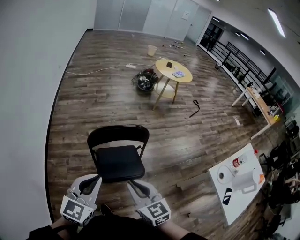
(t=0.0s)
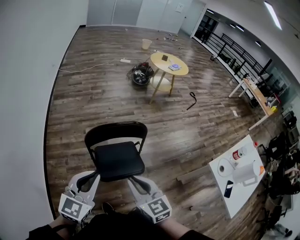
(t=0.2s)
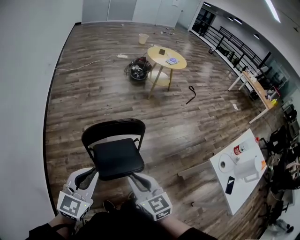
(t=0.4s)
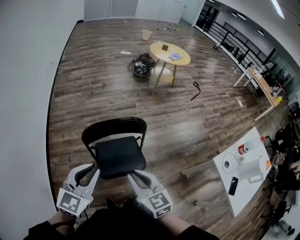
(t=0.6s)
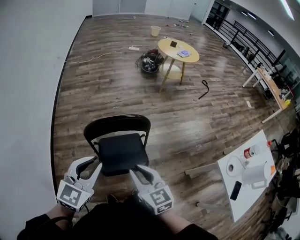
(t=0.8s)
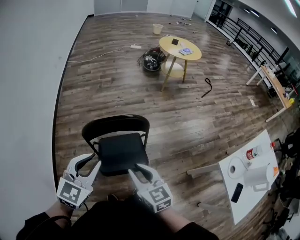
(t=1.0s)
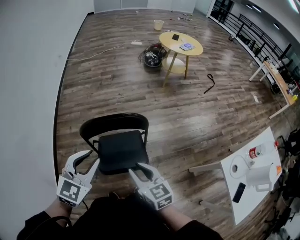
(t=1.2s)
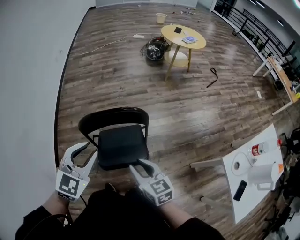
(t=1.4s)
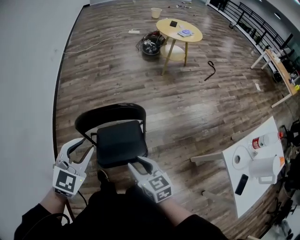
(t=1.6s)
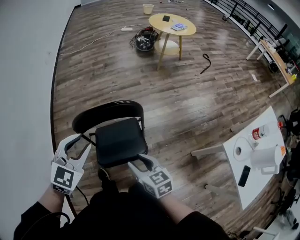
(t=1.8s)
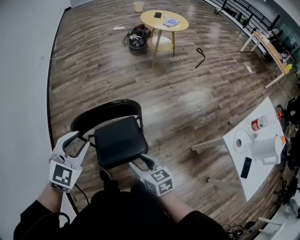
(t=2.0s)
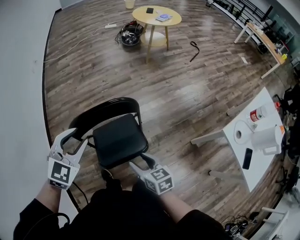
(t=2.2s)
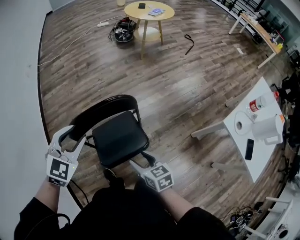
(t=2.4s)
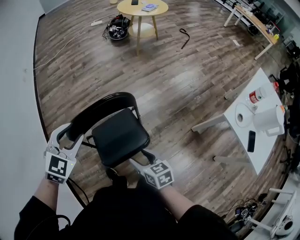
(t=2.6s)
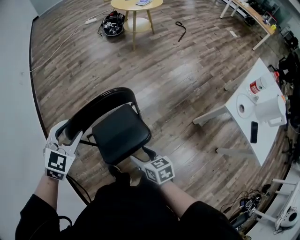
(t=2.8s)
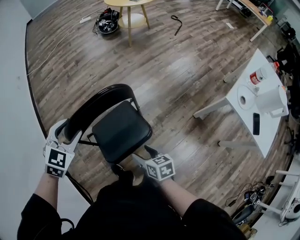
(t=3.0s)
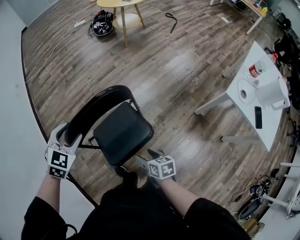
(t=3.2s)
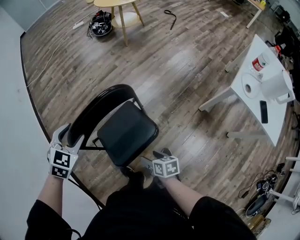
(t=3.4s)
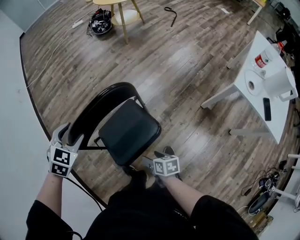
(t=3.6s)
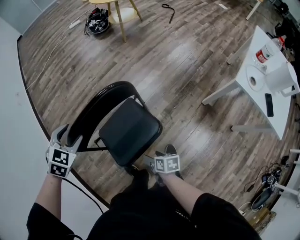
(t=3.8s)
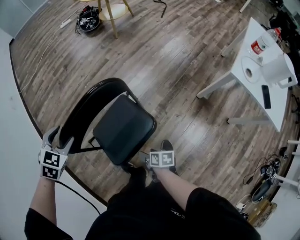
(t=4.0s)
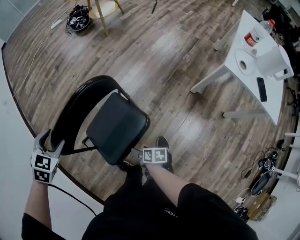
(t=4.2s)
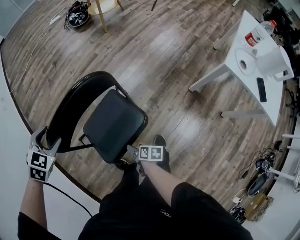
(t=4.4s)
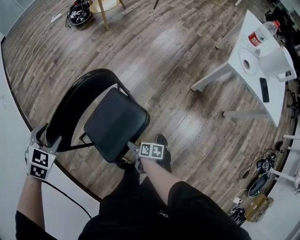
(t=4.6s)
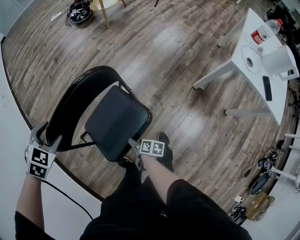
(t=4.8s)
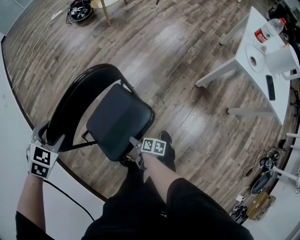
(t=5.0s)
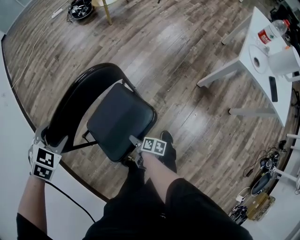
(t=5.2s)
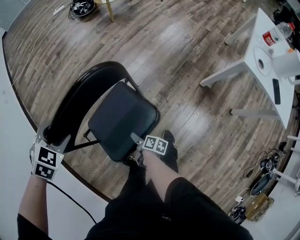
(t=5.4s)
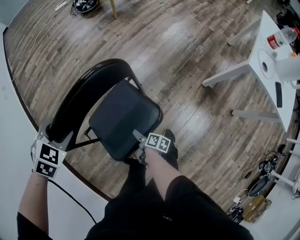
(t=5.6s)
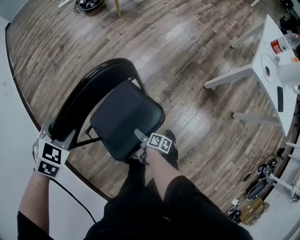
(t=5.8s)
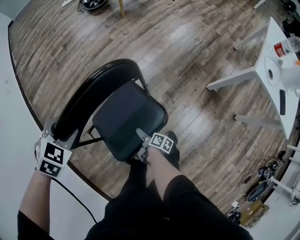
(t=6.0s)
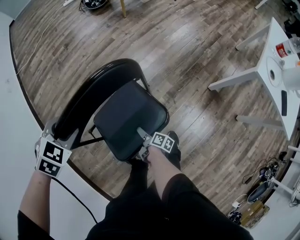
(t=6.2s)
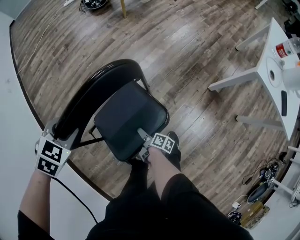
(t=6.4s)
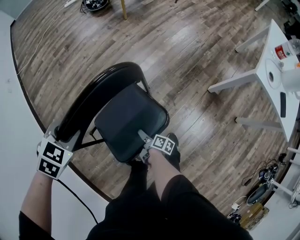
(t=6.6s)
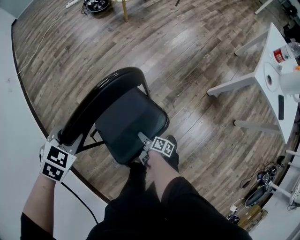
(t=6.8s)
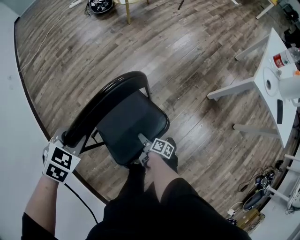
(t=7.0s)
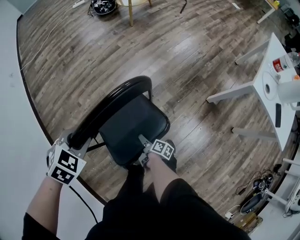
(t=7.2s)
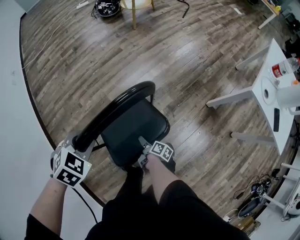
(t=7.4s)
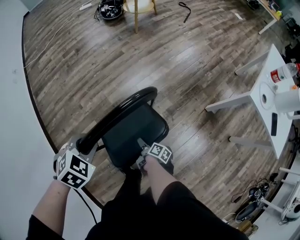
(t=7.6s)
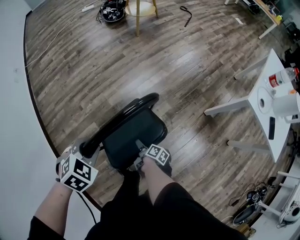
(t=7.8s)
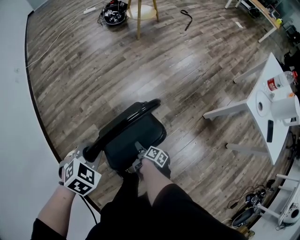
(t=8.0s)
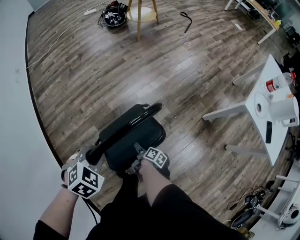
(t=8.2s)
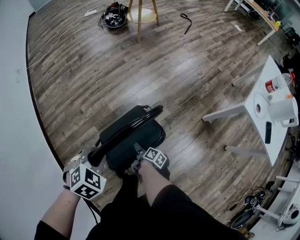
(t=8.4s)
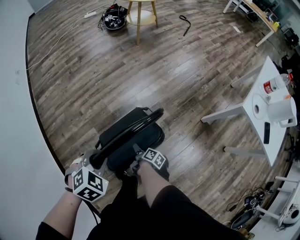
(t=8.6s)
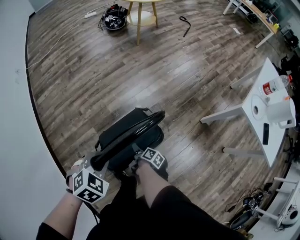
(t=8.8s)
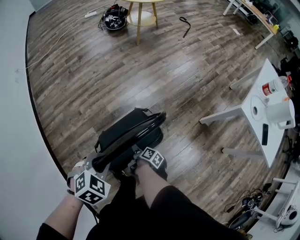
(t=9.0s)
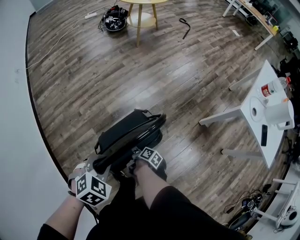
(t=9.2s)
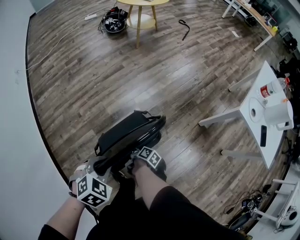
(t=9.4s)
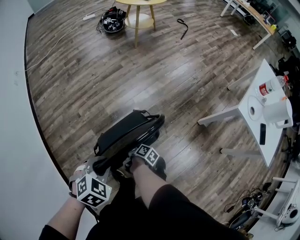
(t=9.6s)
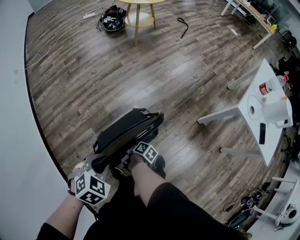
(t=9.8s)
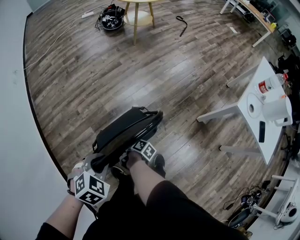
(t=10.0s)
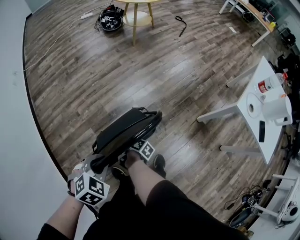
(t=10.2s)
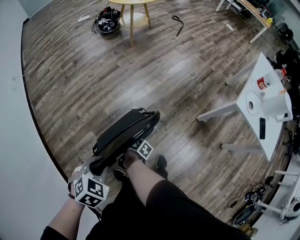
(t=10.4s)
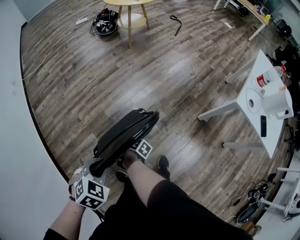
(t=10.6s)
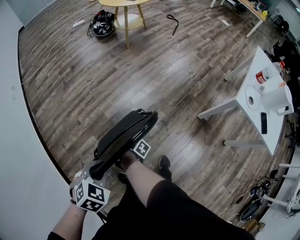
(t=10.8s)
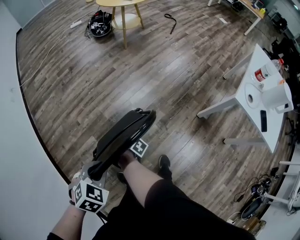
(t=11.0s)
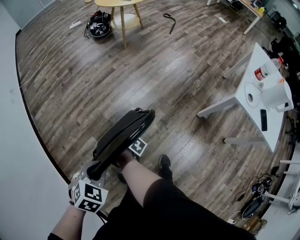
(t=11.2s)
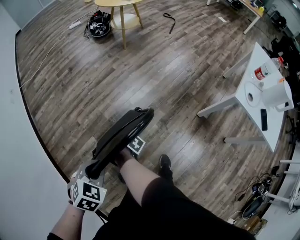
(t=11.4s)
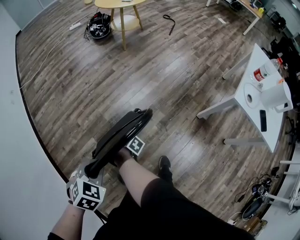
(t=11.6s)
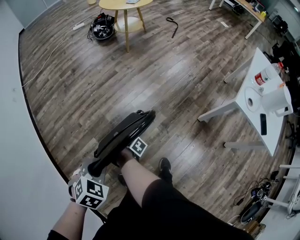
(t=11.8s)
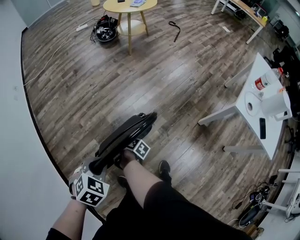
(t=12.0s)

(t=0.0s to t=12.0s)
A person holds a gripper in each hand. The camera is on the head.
t=0.0s - t=1.6s: The right gripper is displaced downward, to the right and forward by some 15 cm. The left gripper shifts some 15 cm forward and to the right, turns by approximately 30 degrees, and opens.
t=1.6s - t=3.0s: The left gripper travels forward, downward and to the left by roughly 15 cm, swivels some 20 degrees, and opens, while the right gripper travels downward by some 15 cm, turns by roughly 30 degrees, and opens its fingers.
t=3.0s - t=4.4s: The right gripper travels downward by about 20 cm, and rolls clockwise, seen from behind, by some 40 degrees, while the left gripper moves downward and to the left, roughly 10 cm.
t=4.4s - t=6.0s: The right gripper goes some 10 cm downward and forward, and swivels approximately 20 degrees, while the left gripper ends up about 5 cm from where it was.
t=6.0s - t=7.6s: The right gripper closes up; the left gripper moves backward, about 5 cm, and closes.
t=7.6s - t=9.0s: The left gripper moves backward, about 5 cm.
t=9.0s - t=10.4s: The right gripper ends up about 10 cm from where it was.
t=10.4s - t=12.0s: The right gripper changes place by some 5 cm.

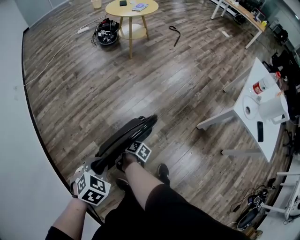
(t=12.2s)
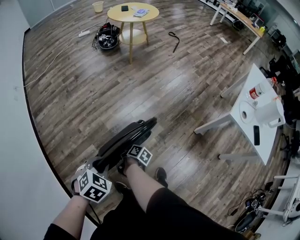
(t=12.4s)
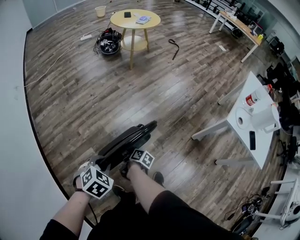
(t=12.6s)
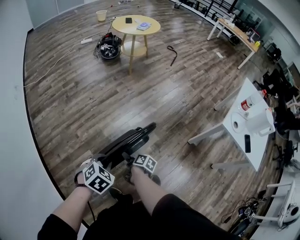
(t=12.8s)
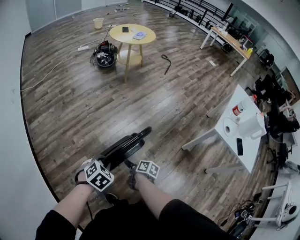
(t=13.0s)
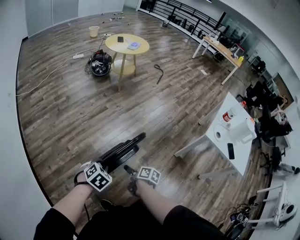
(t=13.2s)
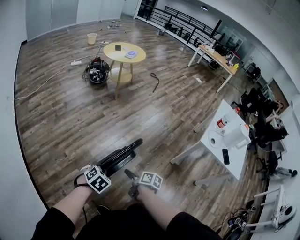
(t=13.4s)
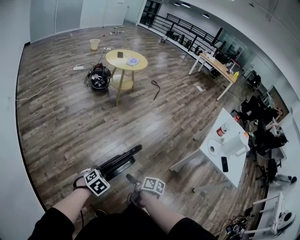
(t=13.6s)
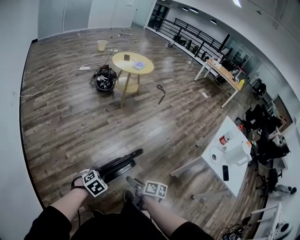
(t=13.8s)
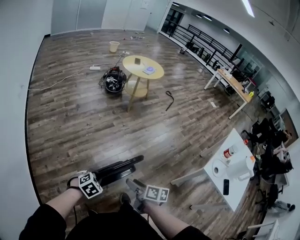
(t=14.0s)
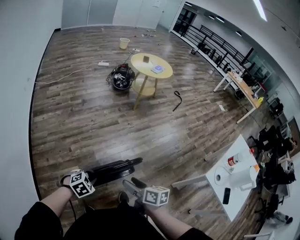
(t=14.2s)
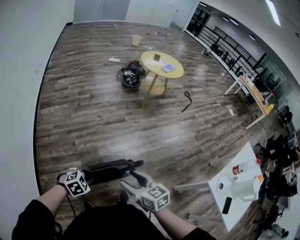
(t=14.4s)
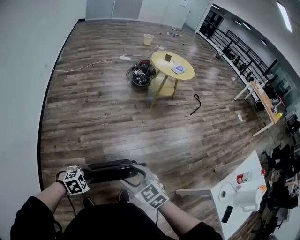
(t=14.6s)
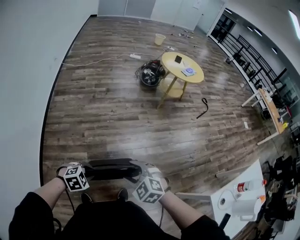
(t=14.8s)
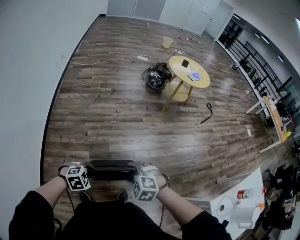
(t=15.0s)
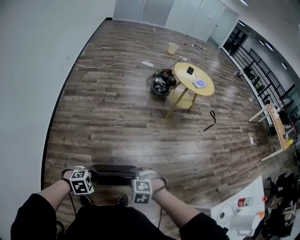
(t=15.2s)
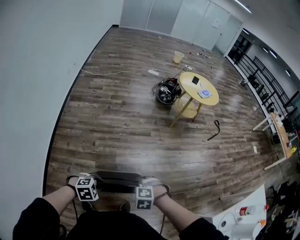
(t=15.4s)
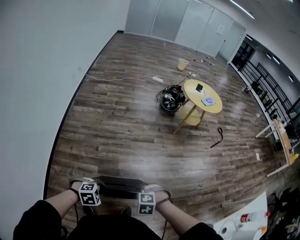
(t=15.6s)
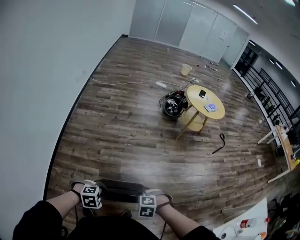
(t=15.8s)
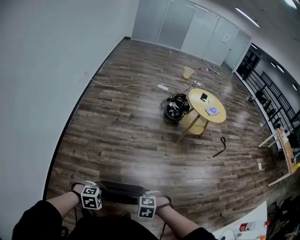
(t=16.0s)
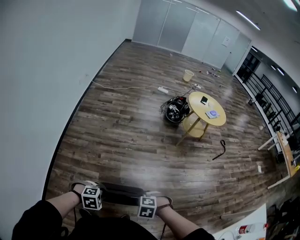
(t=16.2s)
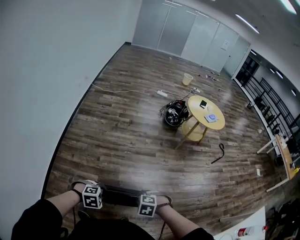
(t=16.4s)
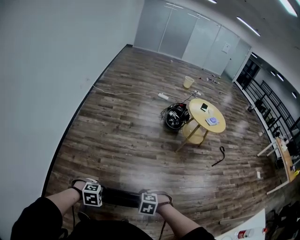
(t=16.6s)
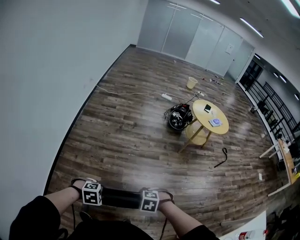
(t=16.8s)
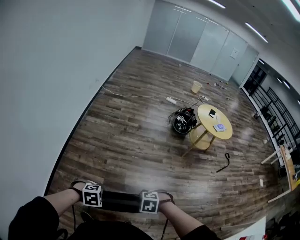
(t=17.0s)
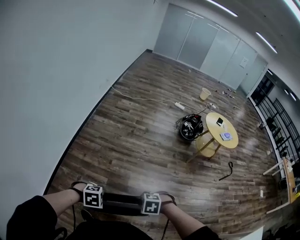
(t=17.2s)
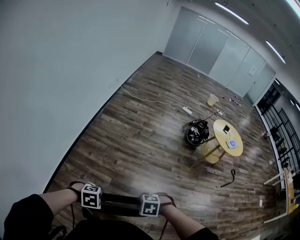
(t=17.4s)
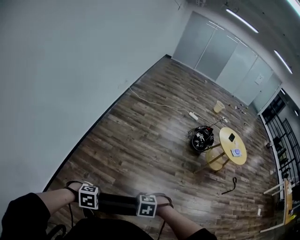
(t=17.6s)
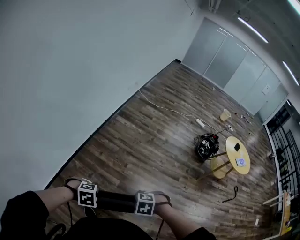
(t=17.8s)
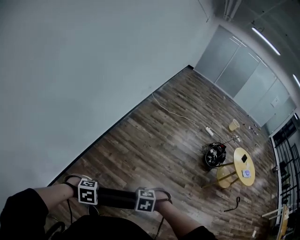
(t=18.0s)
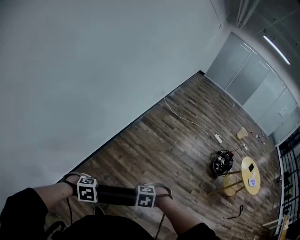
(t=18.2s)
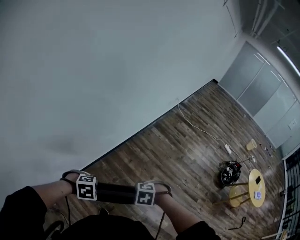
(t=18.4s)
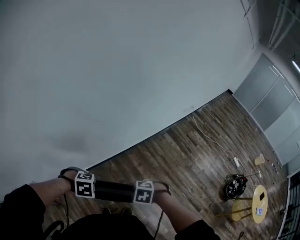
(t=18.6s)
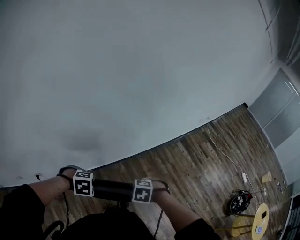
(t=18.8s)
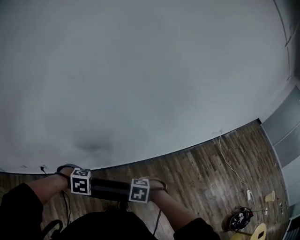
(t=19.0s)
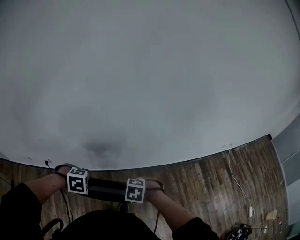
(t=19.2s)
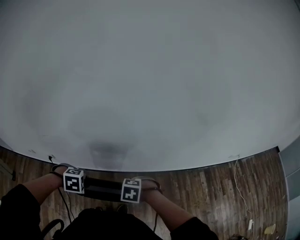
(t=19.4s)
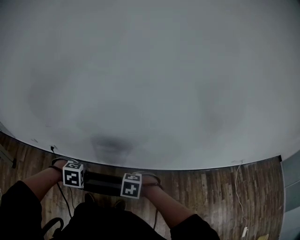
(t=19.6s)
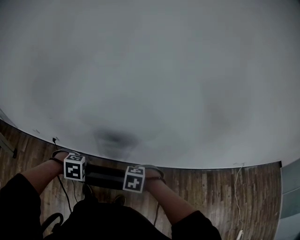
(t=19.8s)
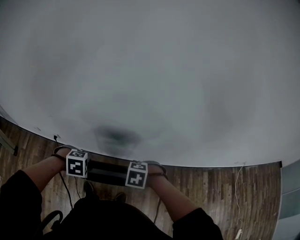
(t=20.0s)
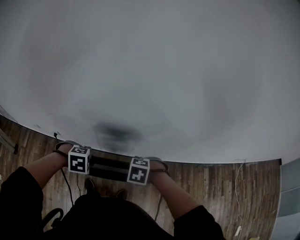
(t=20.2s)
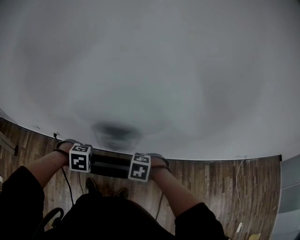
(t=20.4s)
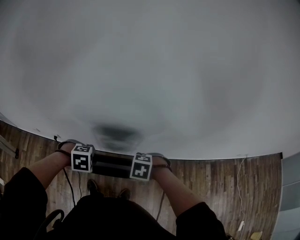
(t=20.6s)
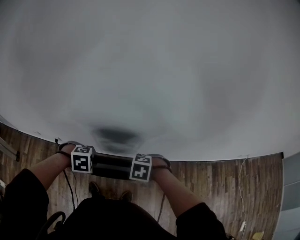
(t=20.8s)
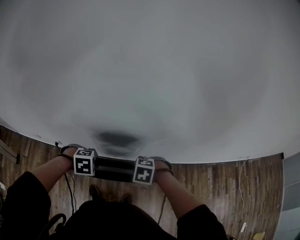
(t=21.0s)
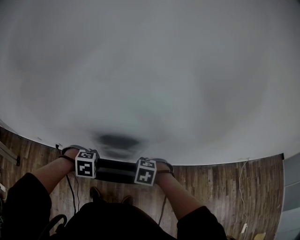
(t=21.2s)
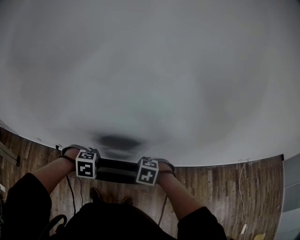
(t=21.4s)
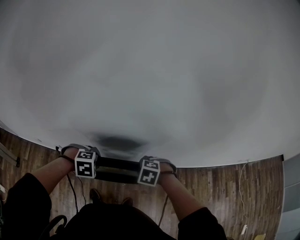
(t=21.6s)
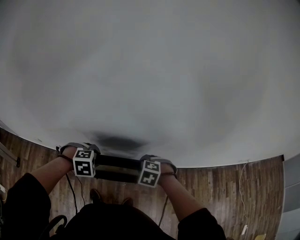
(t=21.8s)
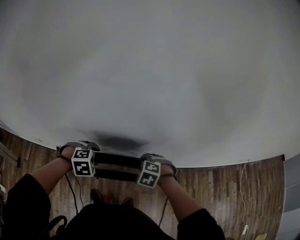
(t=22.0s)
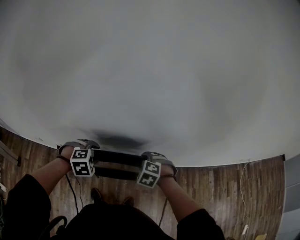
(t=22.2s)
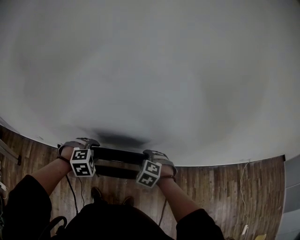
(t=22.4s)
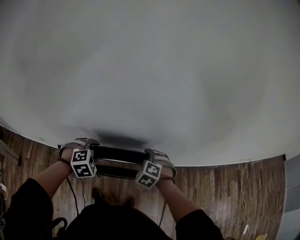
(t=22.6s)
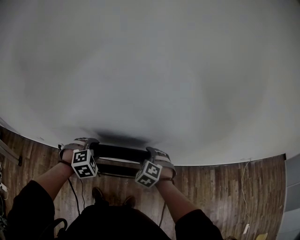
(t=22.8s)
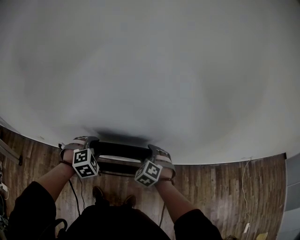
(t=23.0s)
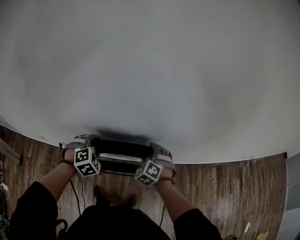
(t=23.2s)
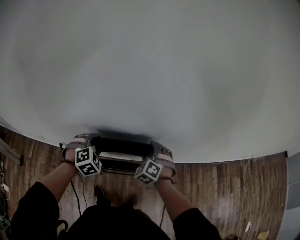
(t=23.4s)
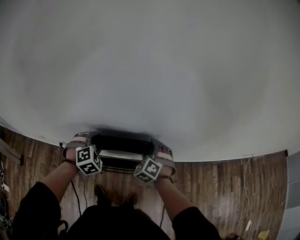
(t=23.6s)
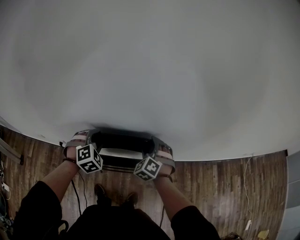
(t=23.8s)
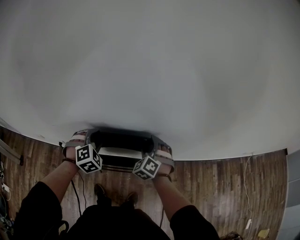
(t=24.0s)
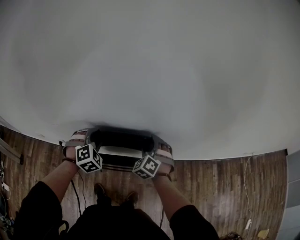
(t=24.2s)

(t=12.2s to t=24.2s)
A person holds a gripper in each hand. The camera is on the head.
t=12.2s - t=13.8s: The right gripper goes approximately 20 cm upward and to the right, and changes its angle by about 30 degrees.
t=13.8s - t=15.2s: The right gripper is displaced forward by about 10 cm, travels upward and back again, about 10 cm each way, and rotates around the line of its fingers by about 130 degrees, counterclockwise from behind.
t=15.2s - t=16.6s: The right gripper closes its fingers.
t=16.6s - t=18.2s: The right gripper changes place by roughly 40 cm, and swivels about 40 degrees; the left gripper moves some 35 cm, and changes its angle by some 40 degrees.
t=18.2s - t=19.8s: The left gripper ends up some 25 cm from where it was, and twists roughly 50 degrees counterclockwise, seen from behind, while the right gripper ends up approximately 35 cm from where it was, and rotates around the line of its fingers by roughly 50 degrees, counterclockwise from behind.
t=19.8s - t=21.2s: The left gripper moves roughly 10 cm. The right gripper ends up about 10 cm from where it was.
t=21.2s - t=22.6s: The left gripper shifts by about 10 cm, and swivels roughly 30 degrees; the right gripper moves some 10 cm, rotates roughly 30 degrees, and opens.
t=22.6s - t=24.2s: The right gripper moves forward, about 5 cm, and turns by about 20 degrees.
